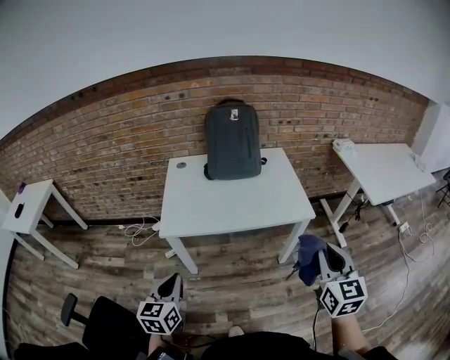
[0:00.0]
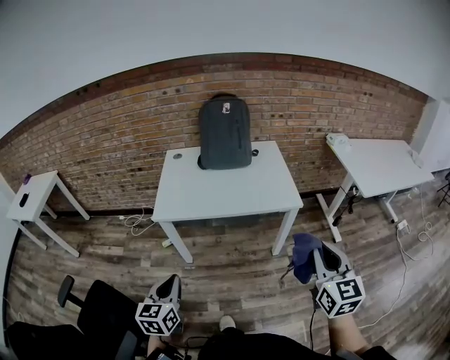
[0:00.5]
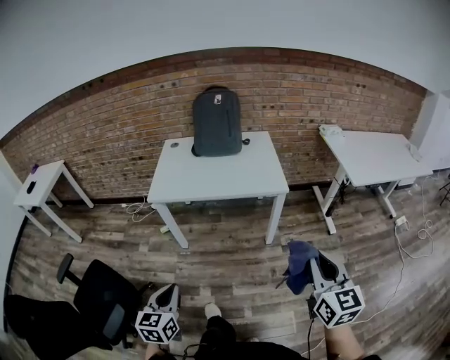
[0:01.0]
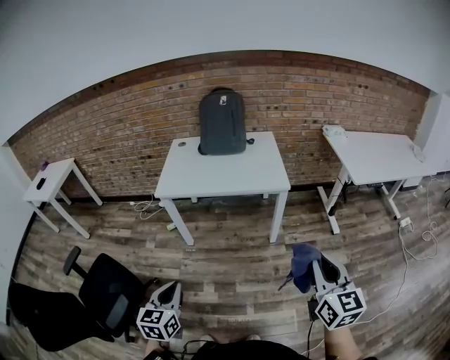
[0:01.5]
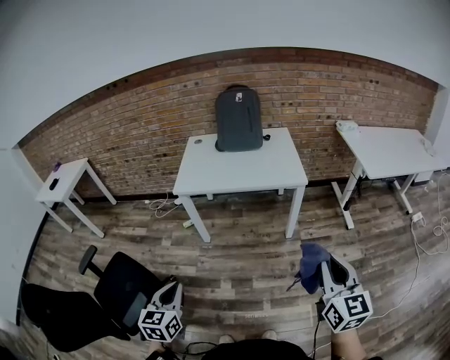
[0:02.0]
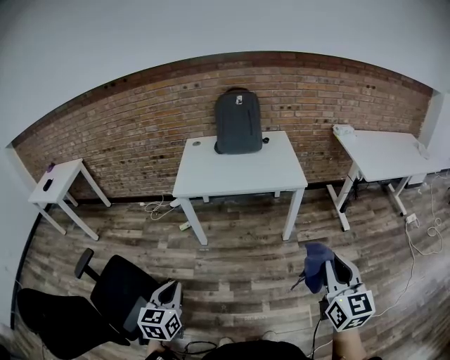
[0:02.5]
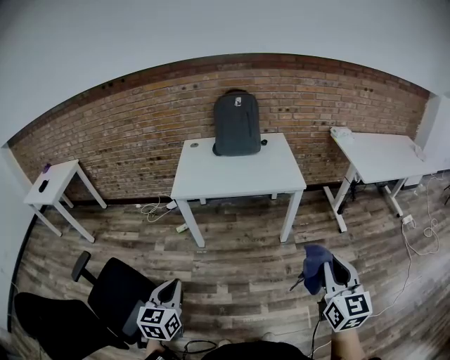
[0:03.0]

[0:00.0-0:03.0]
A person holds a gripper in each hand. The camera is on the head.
0:00.0 to 0:01.5: Both grippers travel together backward and to the right, some 30 cm.
0:01.5 to 0:03.0: The two grippers go about 10 cm to the left.

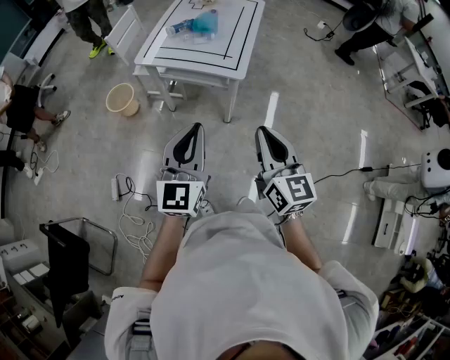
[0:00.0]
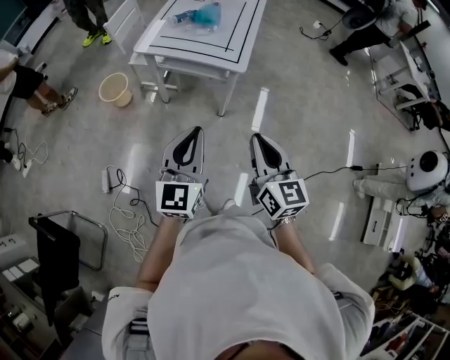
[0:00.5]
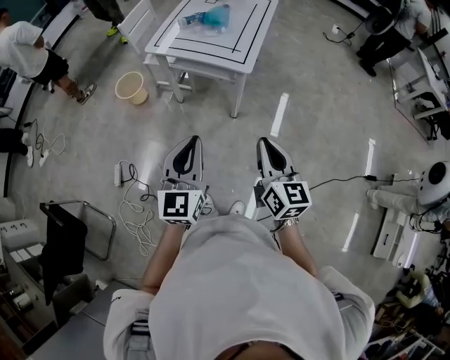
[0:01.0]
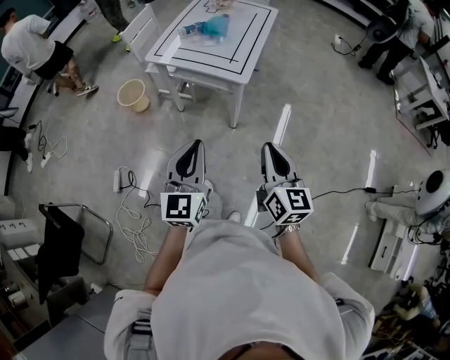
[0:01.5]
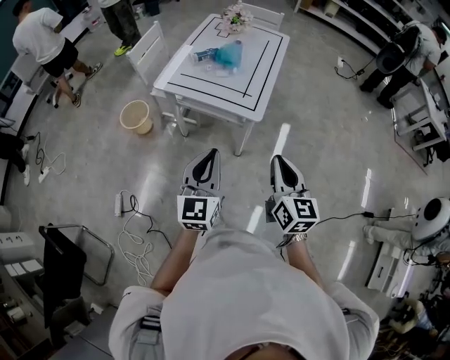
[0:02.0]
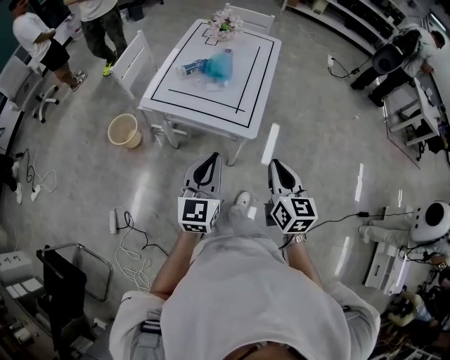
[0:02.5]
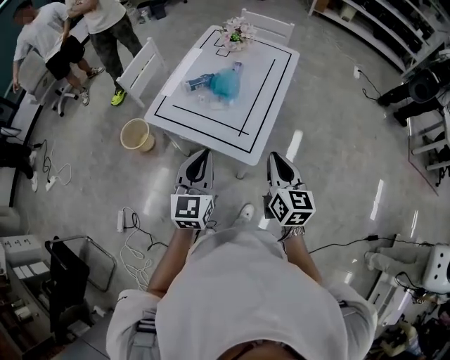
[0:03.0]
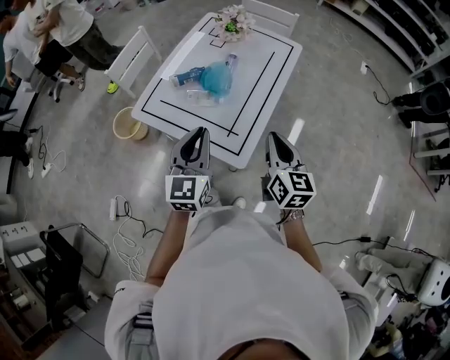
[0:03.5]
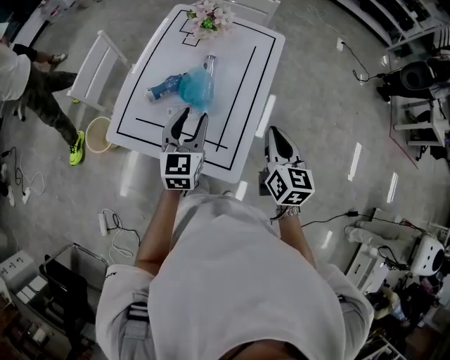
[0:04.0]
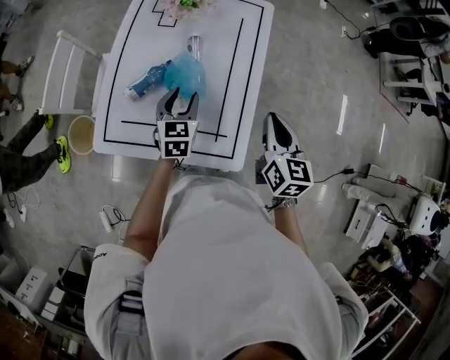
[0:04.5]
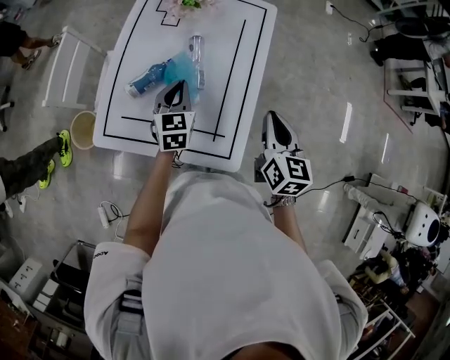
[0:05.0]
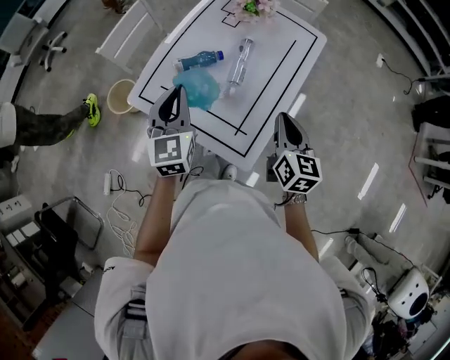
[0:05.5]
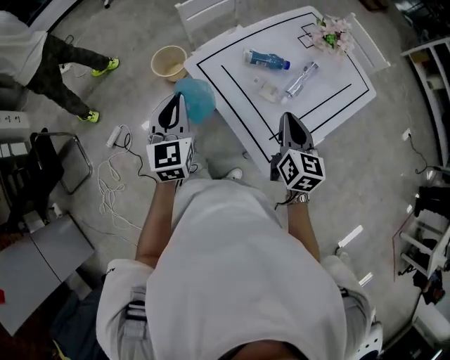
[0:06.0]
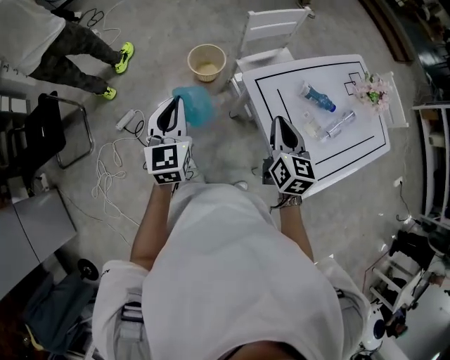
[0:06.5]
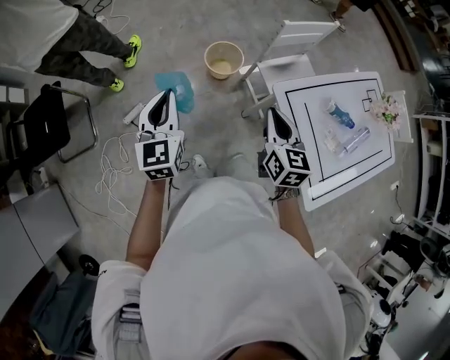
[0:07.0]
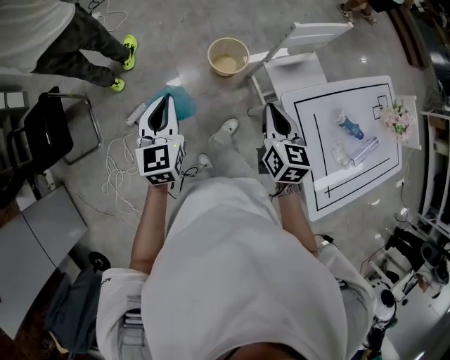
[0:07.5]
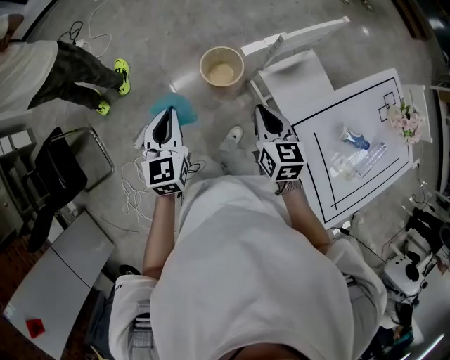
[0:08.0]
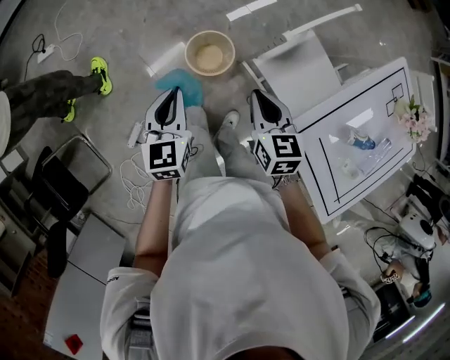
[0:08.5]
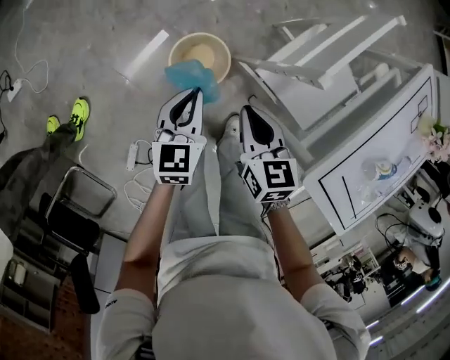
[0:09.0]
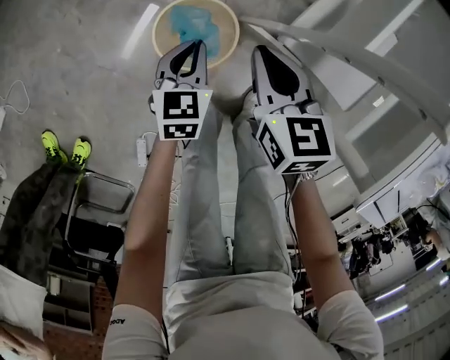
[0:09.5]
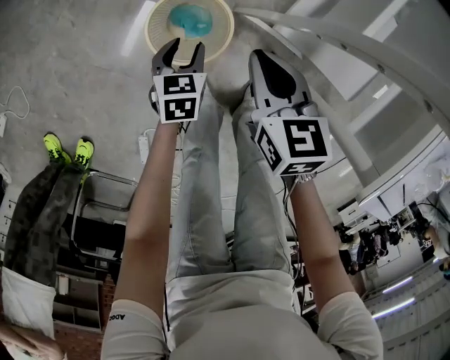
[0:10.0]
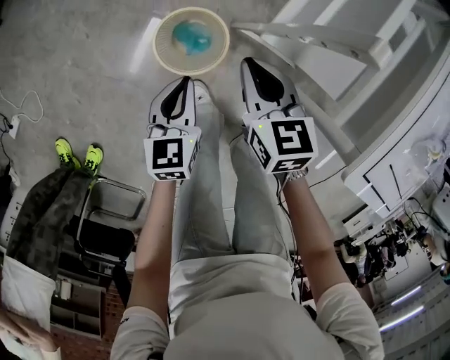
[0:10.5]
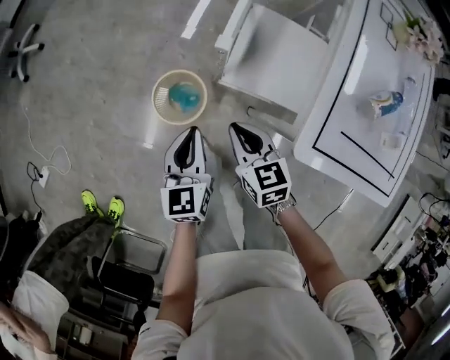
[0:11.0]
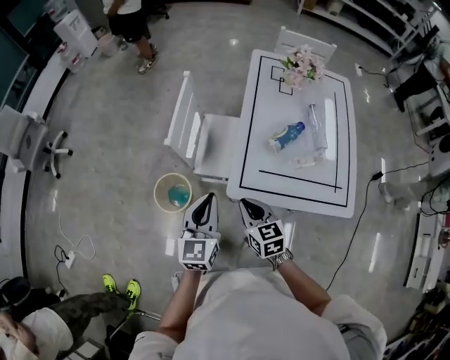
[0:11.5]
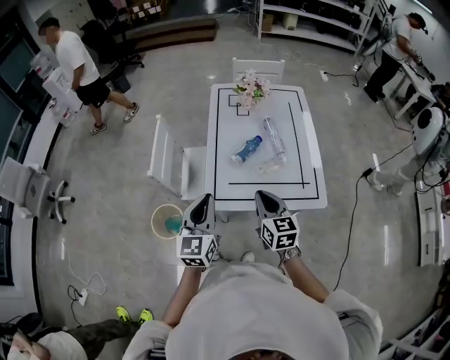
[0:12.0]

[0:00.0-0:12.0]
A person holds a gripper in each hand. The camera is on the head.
0:00.0 to 0:02.0: The grippers both shift forward by approximately 10 cm.
0:02.0 to 0:04.0: The pair of grippers is taken forward, roughly 50 cm. The left gripper opens up.
0:04.0 to 0:06.0: The right gripper moves roughly 15 cm, and swivels some 30 degrees, while the left gripper travels downward and back again, about 10 cm each way, turns by about 50 degrees, and closes up.
0:06.0 to 0:08.0: The pair of grippers is taken to the left and forward, approximately 50 cm. The right gripper changes its angle by approximately 20 degrees.
0:08.0 to 0:10.0: The left gripper shifts some 60 cm downward, points its fingers some 30 degrees further downward, and opens its fingers. Meanwhile the right gripper moves downward, roughly 40 cm, and changes its angle by about 30 degrees.
0:10.0 to 0:12.0: The two grippers travel together, some 50 cm. The right gripper turns by about 40 degrees. The left gripper heads upward, covering some 70 cm, angles its fingers upward, by about 50 degrees, and closes.

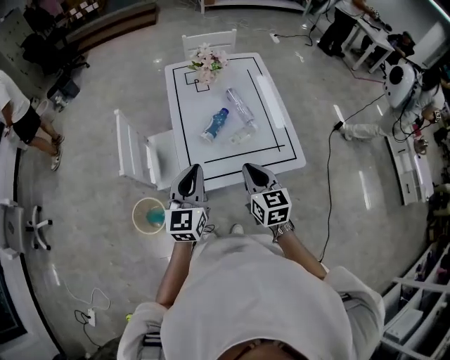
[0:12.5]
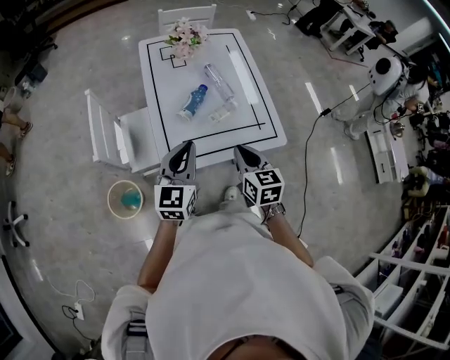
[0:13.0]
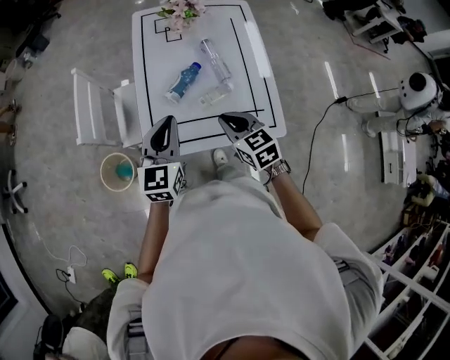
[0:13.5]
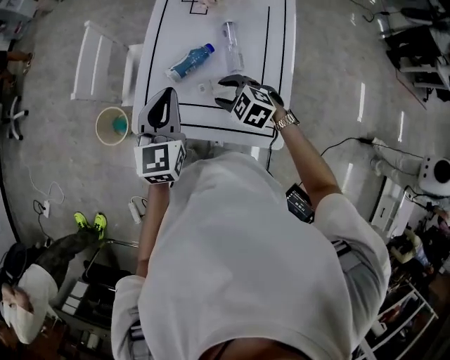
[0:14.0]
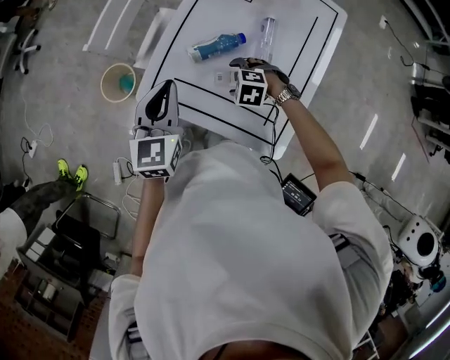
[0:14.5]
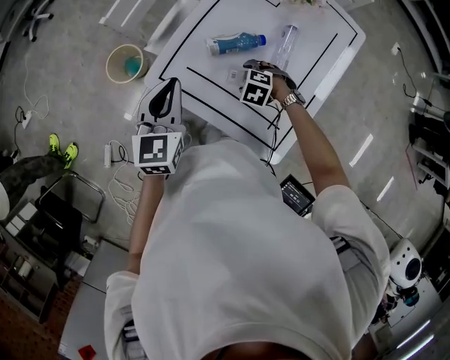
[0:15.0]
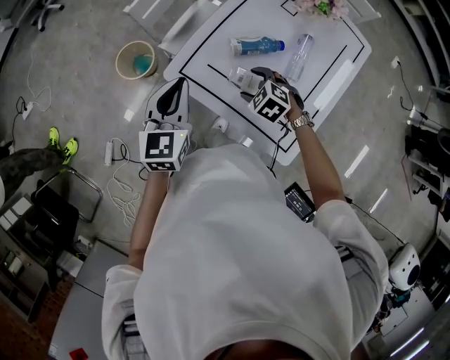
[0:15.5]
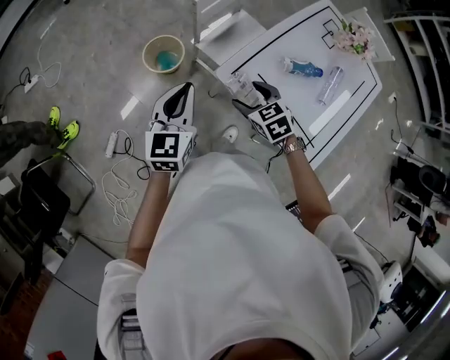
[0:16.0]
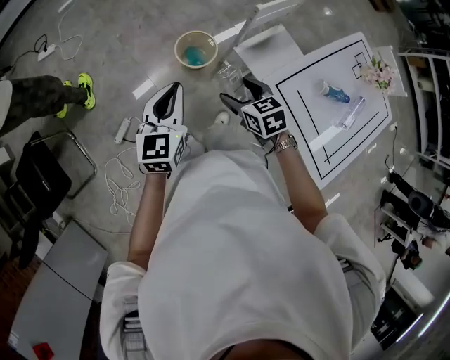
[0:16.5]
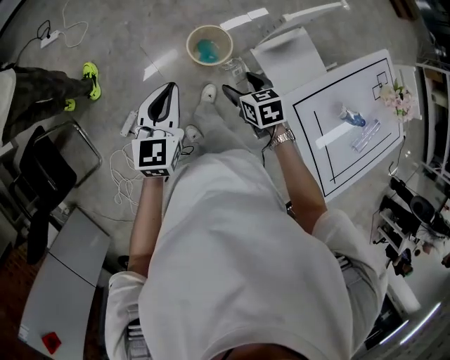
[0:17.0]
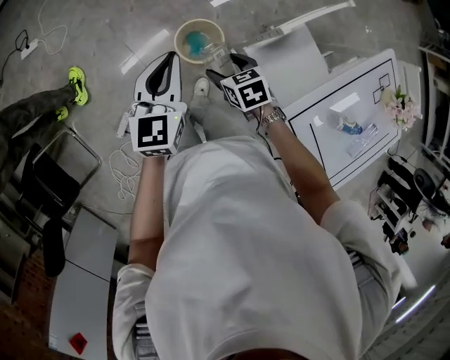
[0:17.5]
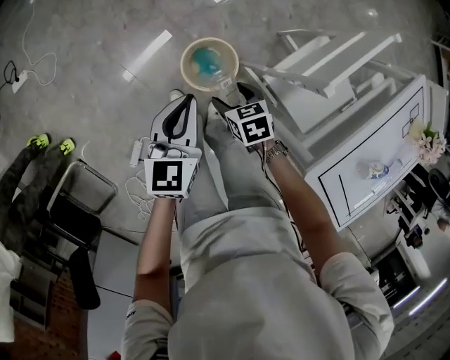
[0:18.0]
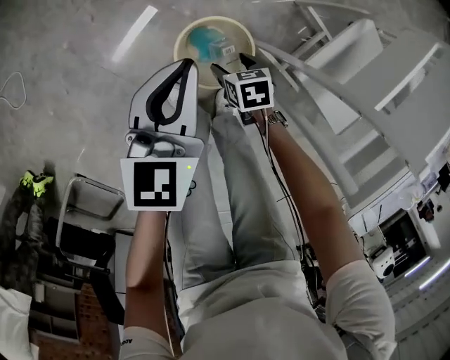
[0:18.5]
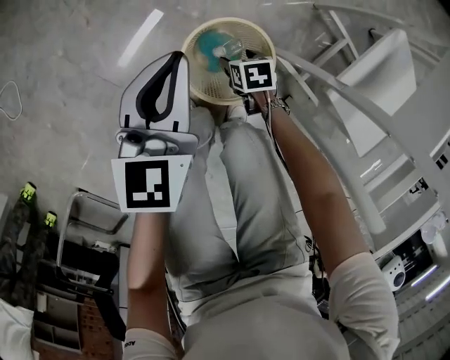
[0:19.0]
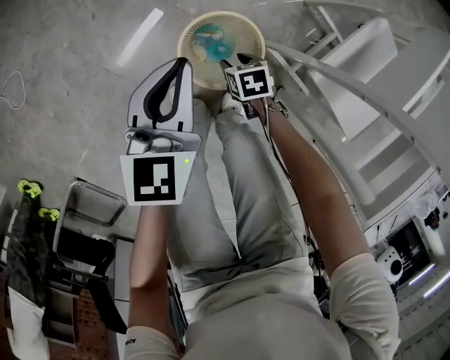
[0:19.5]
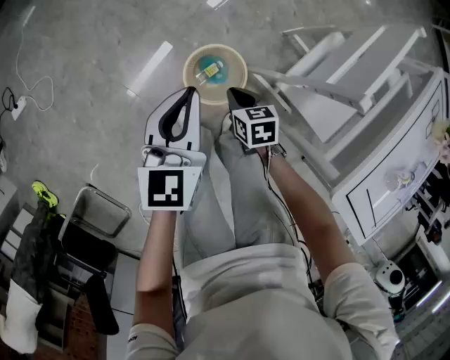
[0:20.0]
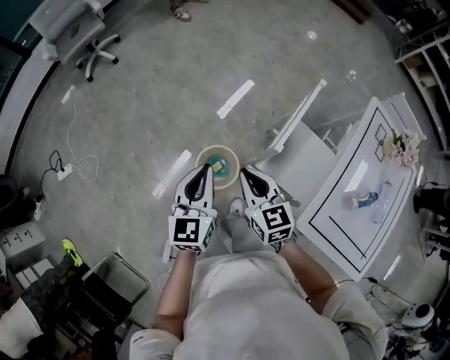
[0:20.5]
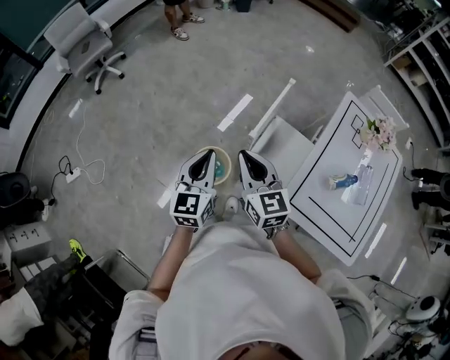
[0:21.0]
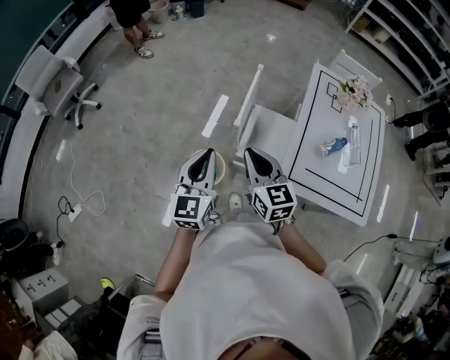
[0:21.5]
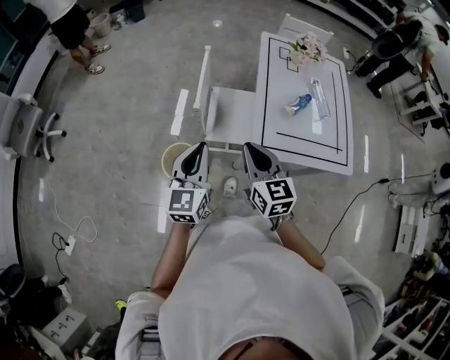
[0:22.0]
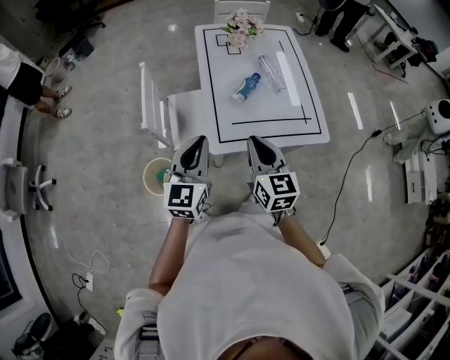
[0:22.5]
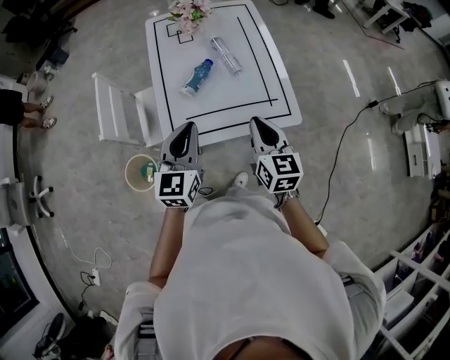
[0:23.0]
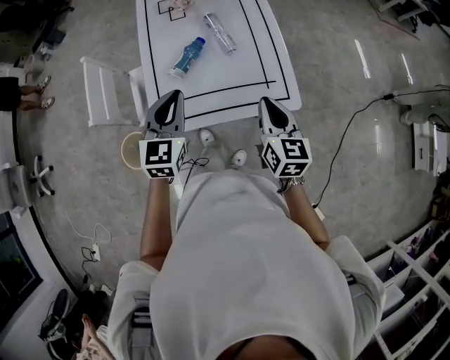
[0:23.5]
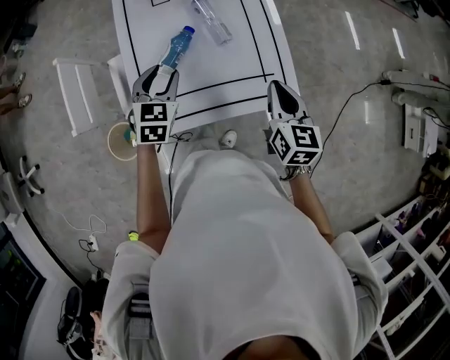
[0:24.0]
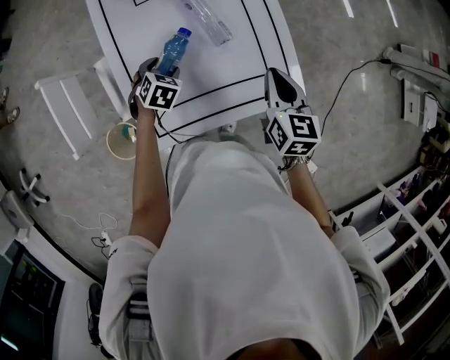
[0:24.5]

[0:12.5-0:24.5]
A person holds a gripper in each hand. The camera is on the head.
0:12.5 to 0:14.5: The left gripper ends up about 15 cm from where it was, and turns by roughly 40 degrees, while the right gripper heads downward, covering about 25 cm, points its fingers approximately 50 degrees further downward, and opens up.
0:14.5 to 0:16.5: Both grippers are carried roughly 50 cm. The right gripper rotates approximately 40 degrees. Meanwhile the left gripper turns by some 30 degrees.
0:16.5 to 0:18.5: The left gripper moves forward and downward, approximately 60 cm, and turns by approximately 20 degrees; the right gripper shifts some 60 cm downward and forward, and swivels approximately 40 degrees.
0:18.5 to 0:20.5: The left gripper moves upward, some 35 cm; the right gripper shifts some 60 cm upward, tilts its fingers approximately 40 degrees upward, and closes up.
0:20.5 to 0:22.5: The right gripper changes place by approximately 50 cm, and turns by some 60 degrees. The left gripper shifts by roughly 40 cm, and rotates about 50 degrees.
0:22.5 to 0:24.5: The right gripper travels to the right, forward and downward by some 40 cm, and changes its angle by approximately 30 degrees. Meanwhile the left gripper heads forward, downward and to the right, covering roughly 50 cm, tips its fingers downward by roughly 60 degrees, and opens.
